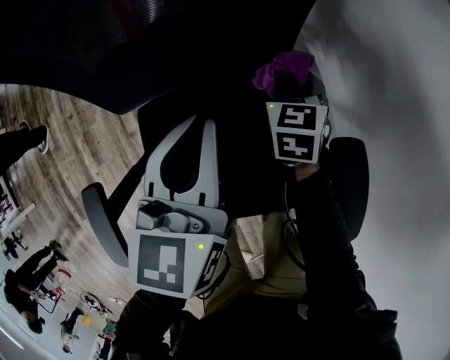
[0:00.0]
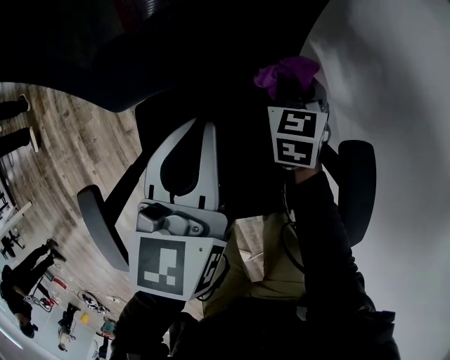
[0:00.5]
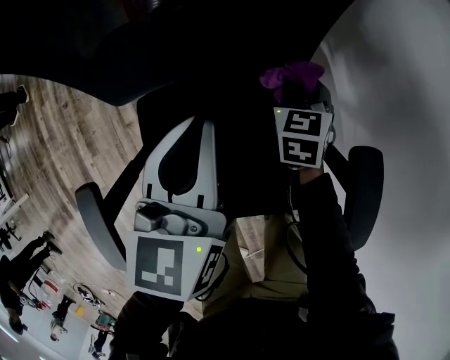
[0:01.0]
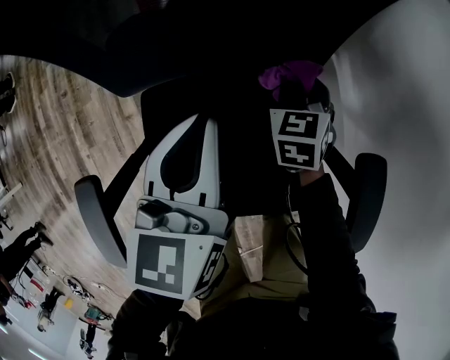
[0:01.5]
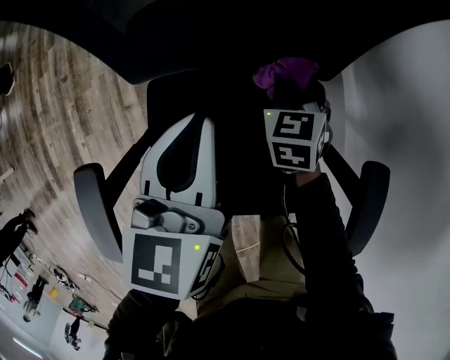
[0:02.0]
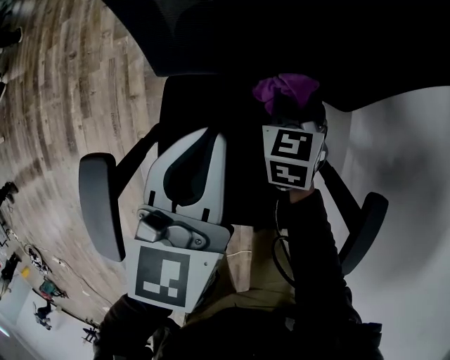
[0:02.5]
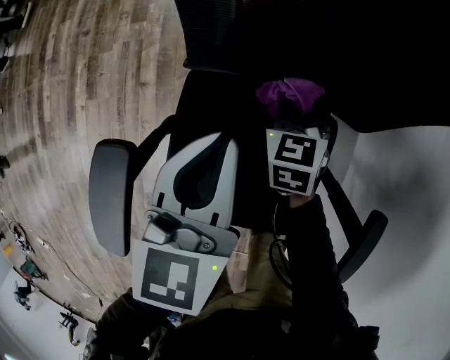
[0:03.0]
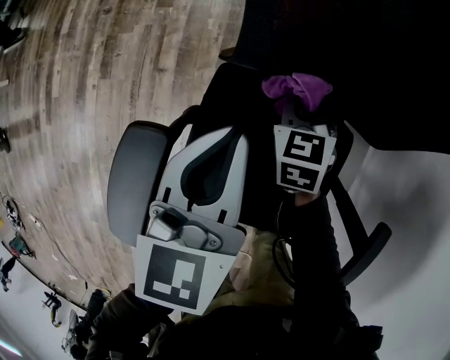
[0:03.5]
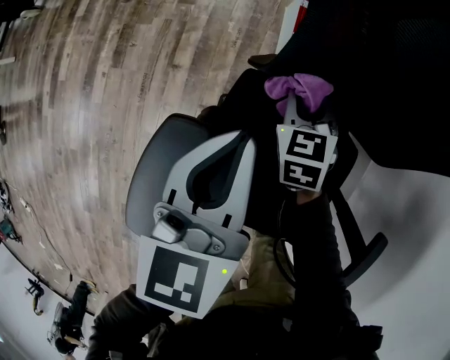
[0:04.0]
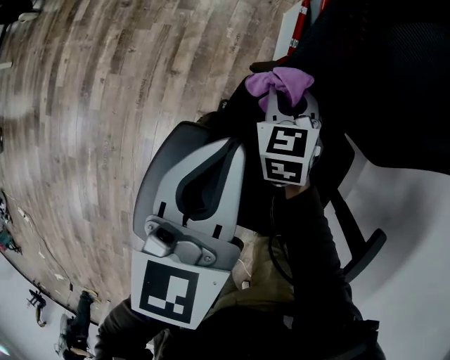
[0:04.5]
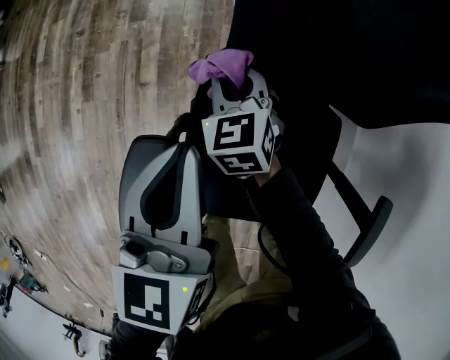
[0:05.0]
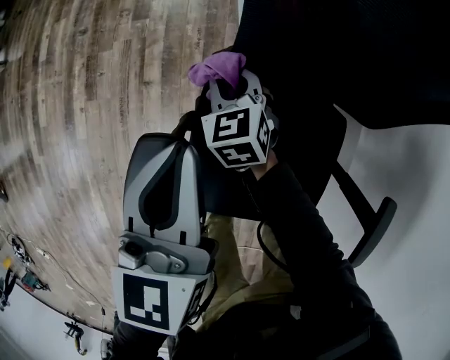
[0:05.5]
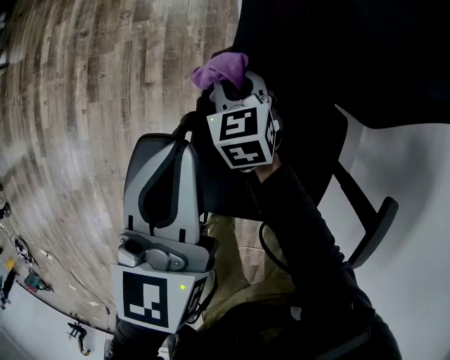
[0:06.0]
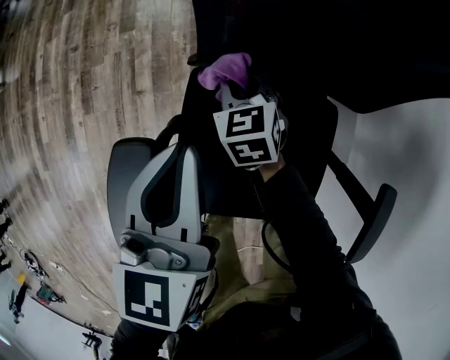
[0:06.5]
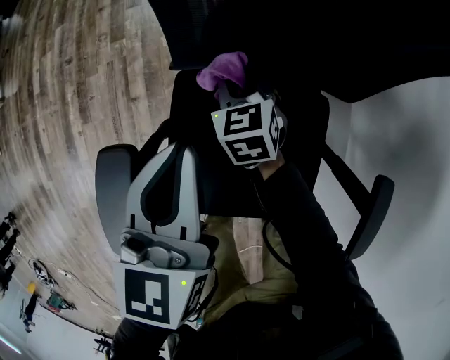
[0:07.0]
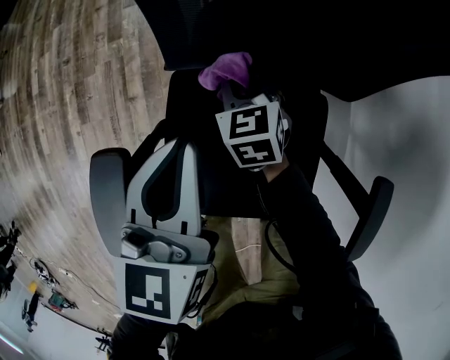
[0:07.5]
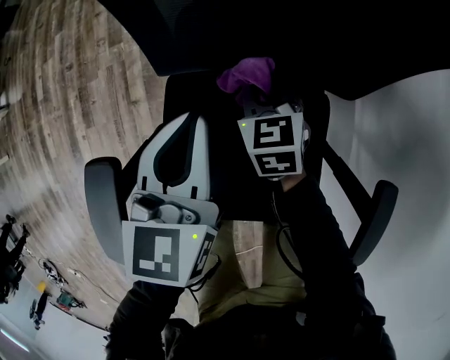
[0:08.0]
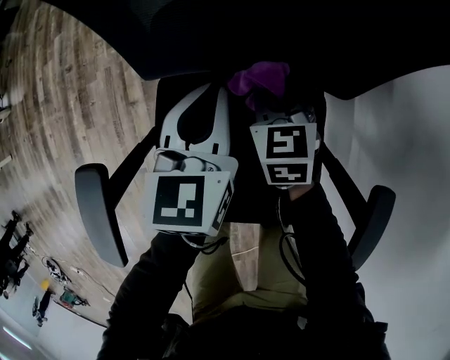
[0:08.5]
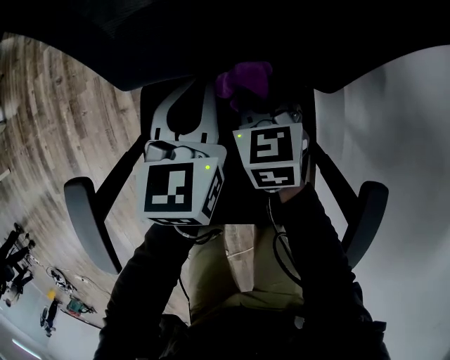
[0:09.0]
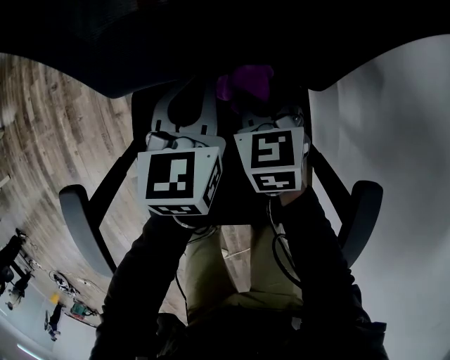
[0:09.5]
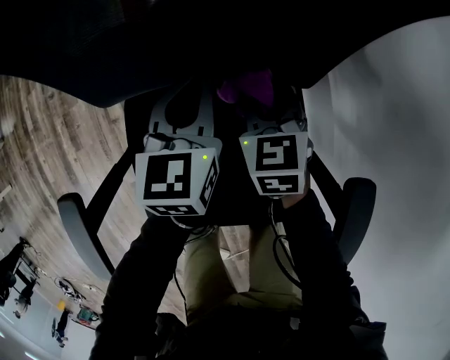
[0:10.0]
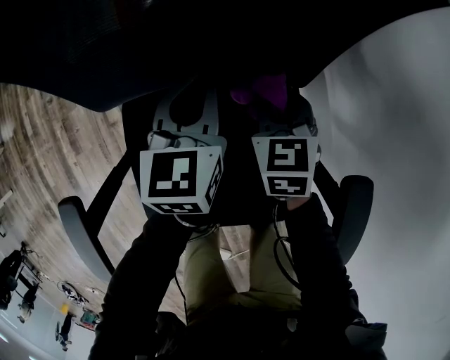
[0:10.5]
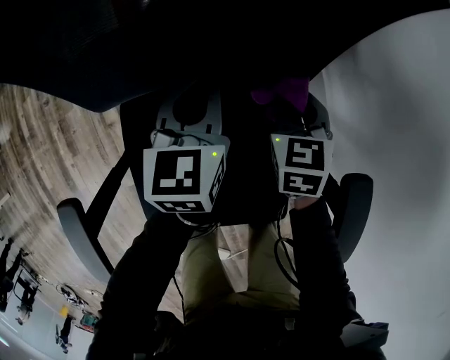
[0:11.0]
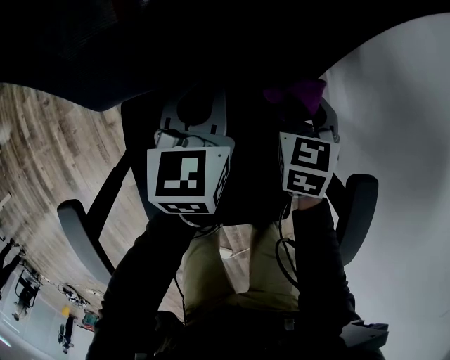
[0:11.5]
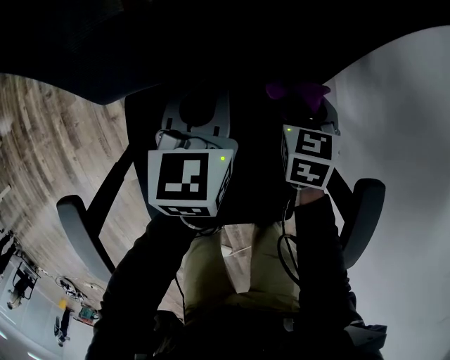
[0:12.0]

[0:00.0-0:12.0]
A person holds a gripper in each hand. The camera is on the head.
0:00.0 to 0:02.0: The two grippers go some 10 cm to the left.
0:02.0 to 0:04.0: The grippers both shift to the left by about 25 cm. The right gripper swivels approximately 20 degrees.
0:04.0 to 0:06.0: The right gripper is displaced to the left by some 5 cm.
0:06.0 to 0:08.0: Both grippers move to the right, about 15 cm.
0:08.0 to 0:10.0: The left gripper goes about 20 cm to the right and downward, while the right gripper goes some 15 cm to the right.
0:10.0 to 0:12.0: The right gripper shifts about 10 cm to the right.

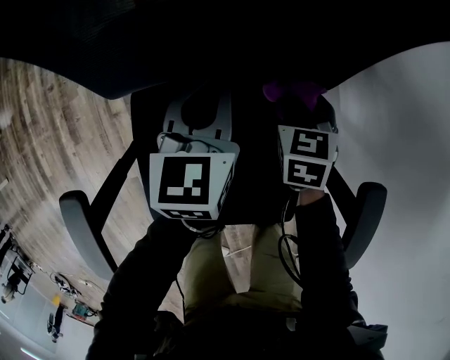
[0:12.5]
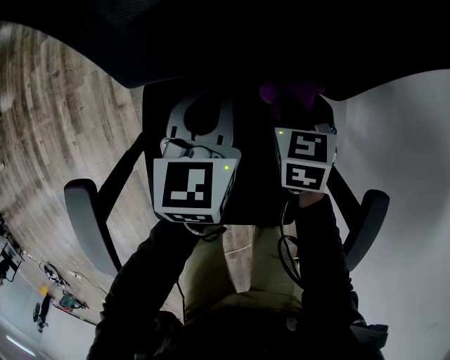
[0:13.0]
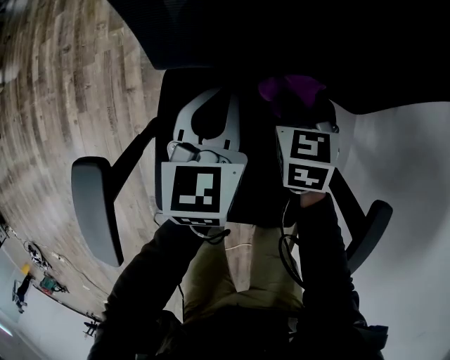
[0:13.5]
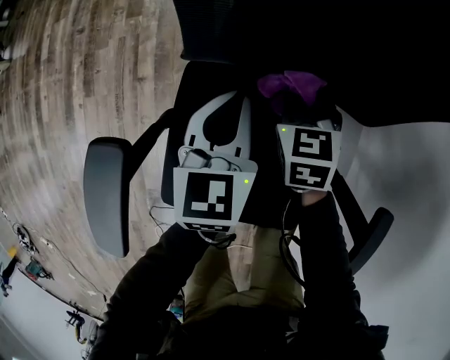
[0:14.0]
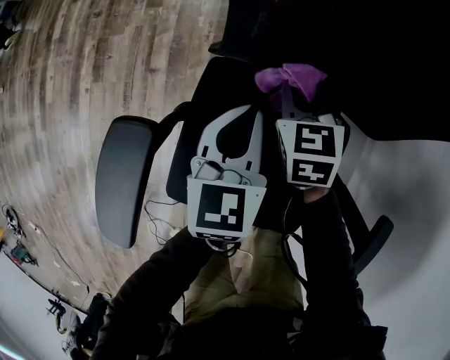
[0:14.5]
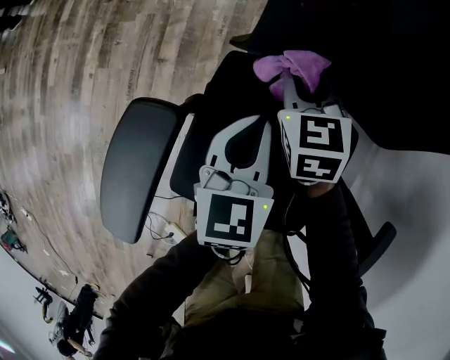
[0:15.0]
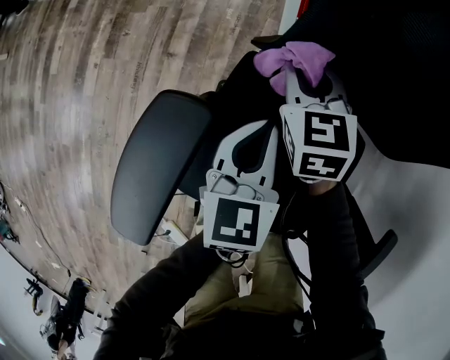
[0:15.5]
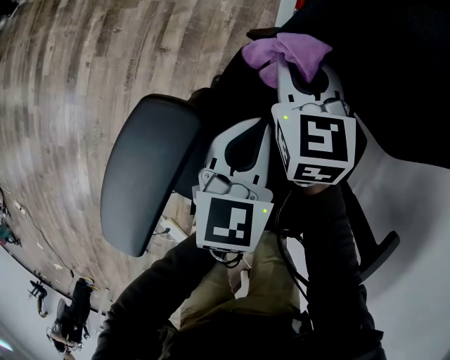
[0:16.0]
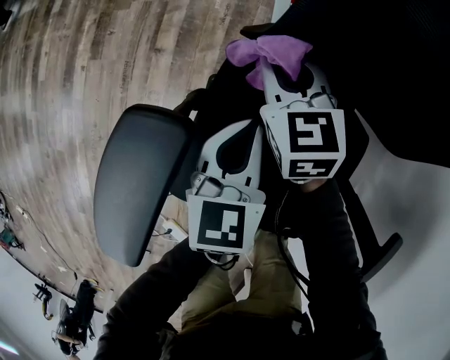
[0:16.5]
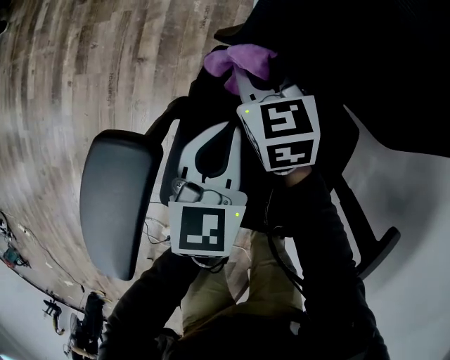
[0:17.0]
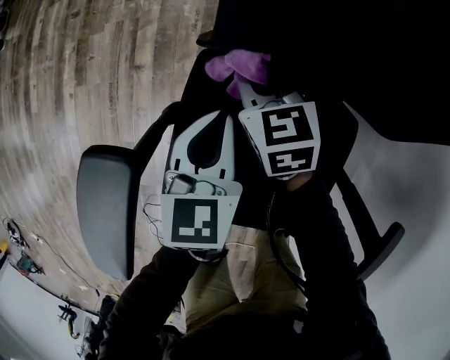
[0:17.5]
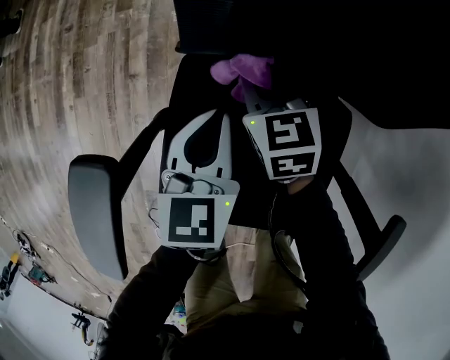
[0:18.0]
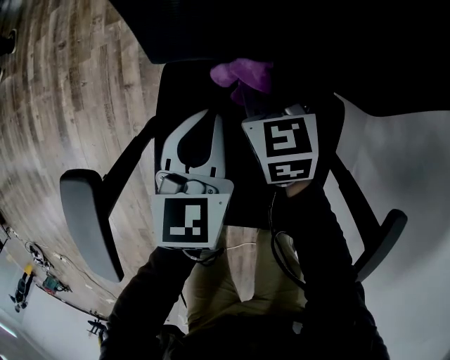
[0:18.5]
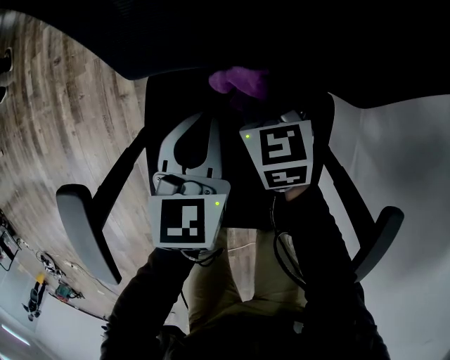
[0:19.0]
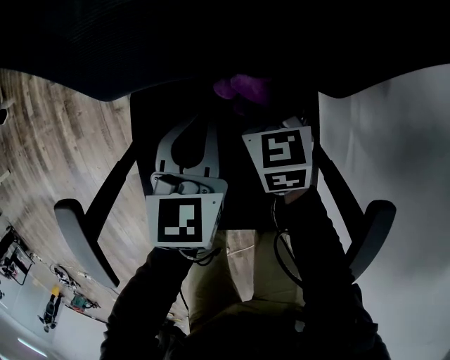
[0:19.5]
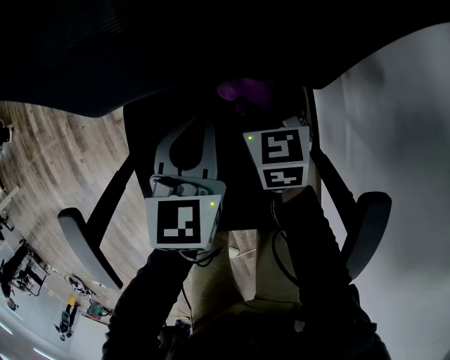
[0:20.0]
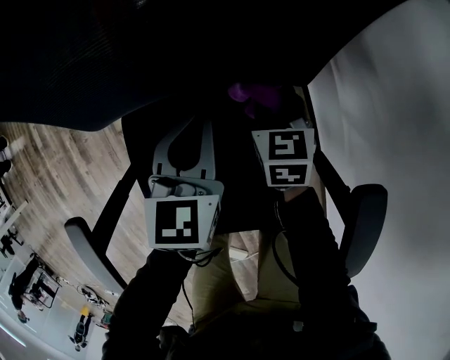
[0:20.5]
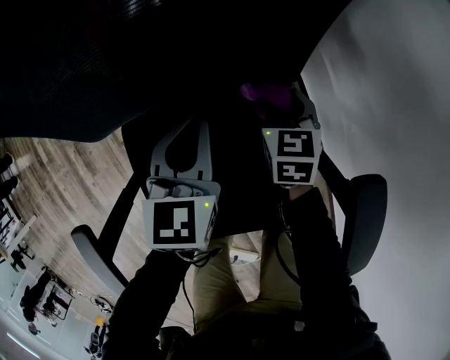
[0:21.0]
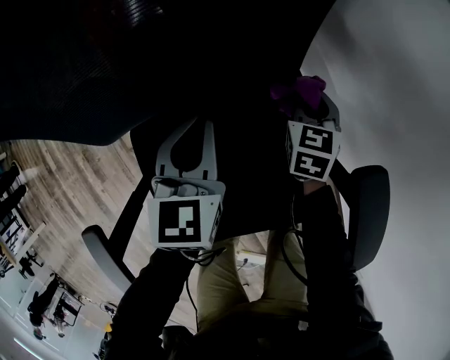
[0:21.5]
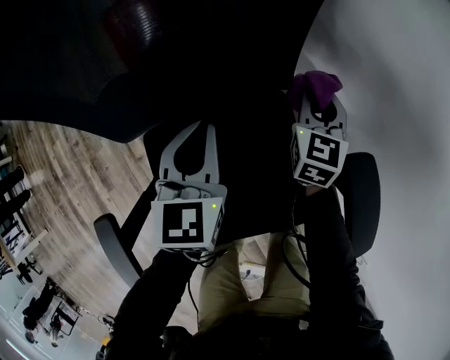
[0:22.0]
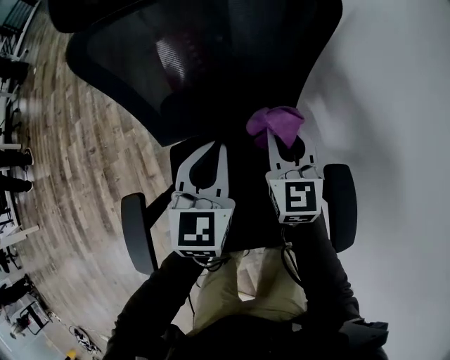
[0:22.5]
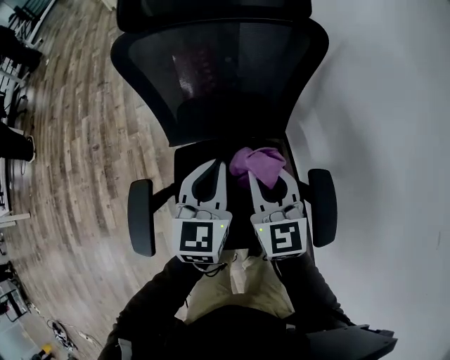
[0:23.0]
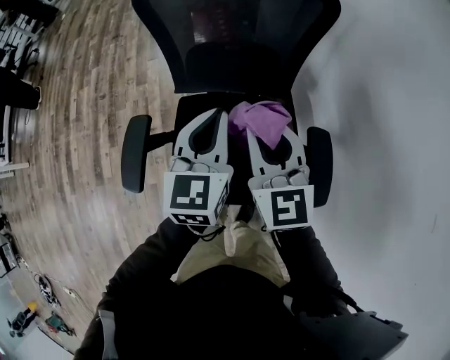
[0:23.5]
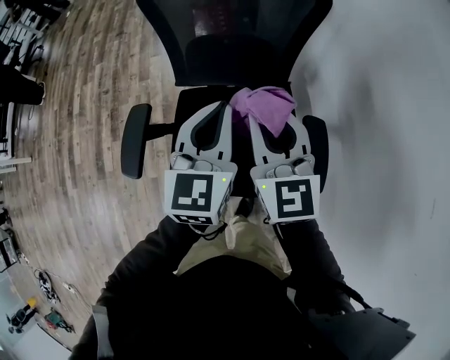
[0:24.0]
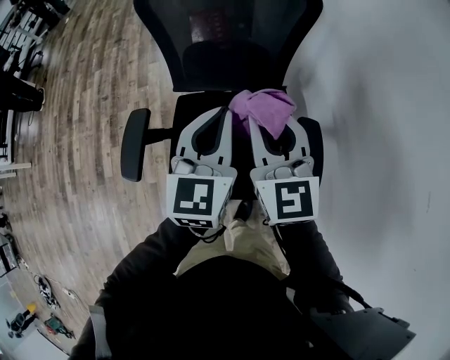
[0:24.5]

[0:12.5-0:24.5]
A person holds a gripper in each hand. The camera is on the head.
0:12.5 to 0:14.5: The right gripper is displaced to the left by some 25 cm, and swivels about 30 degrees, while the left gripper travels to the left and backward by some 20 cm.
0:14.5 to 0:16.5: The right gripper heads to the left, covering approximately 15 cm. The left gripper goes some 10 cm to the left and downward.
0:16.5 to 0:18.5: The right gripper shifts approximately 15 cm to the right; the left gripper moves to the right, approximately 10 cm.
0:18.5 to 0:20.5: The grippers both shift to the right by roughly 20 cm. The right gripper changes its angle by about 20 degrees.
0:20.5 to 0:22.5: Both grippers travel together upward, roughly 25 cm. The right gripper tips its fingers upward by approximately 30 degrees.
0:22.5 to 0:24.5: The two grippers go roughly 25 cm backward and upward.

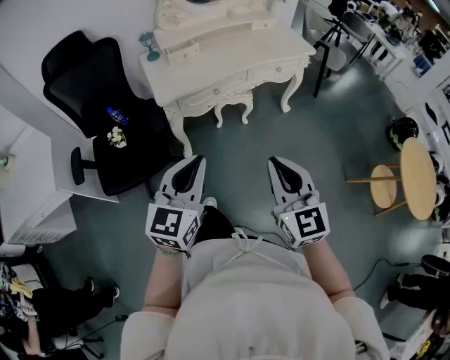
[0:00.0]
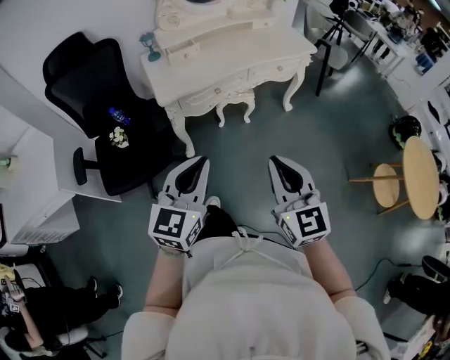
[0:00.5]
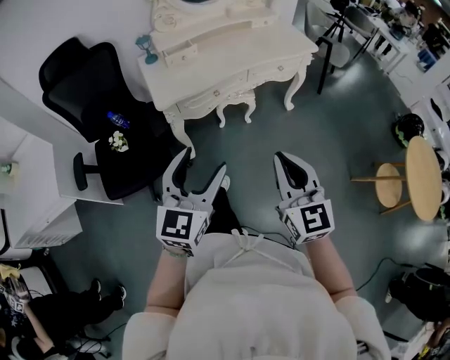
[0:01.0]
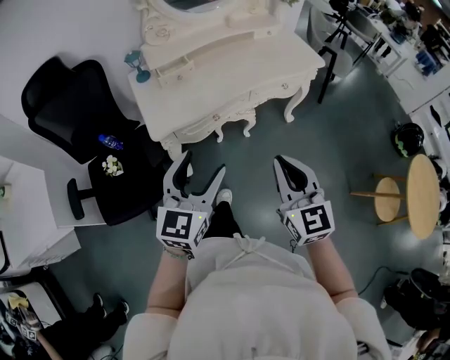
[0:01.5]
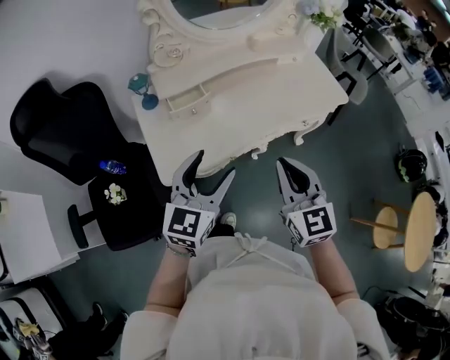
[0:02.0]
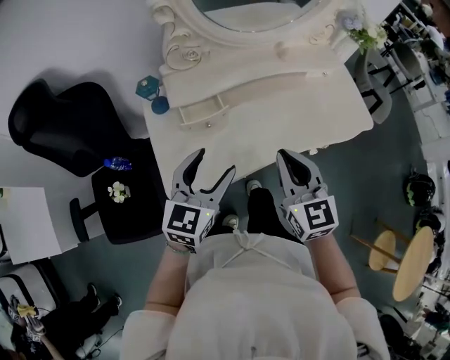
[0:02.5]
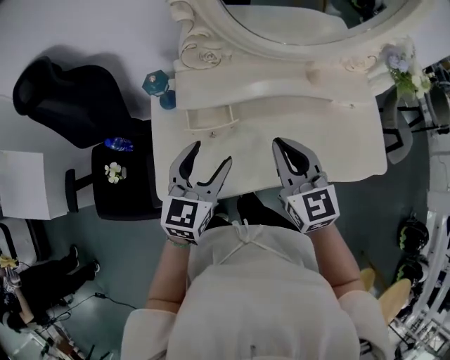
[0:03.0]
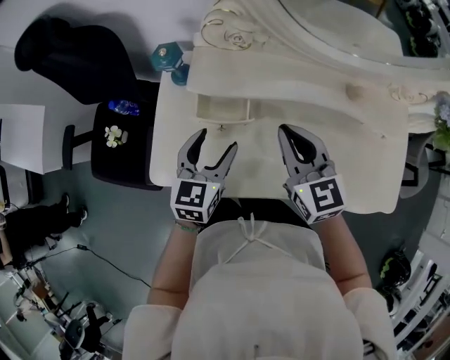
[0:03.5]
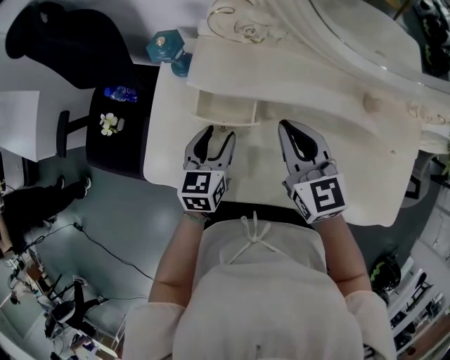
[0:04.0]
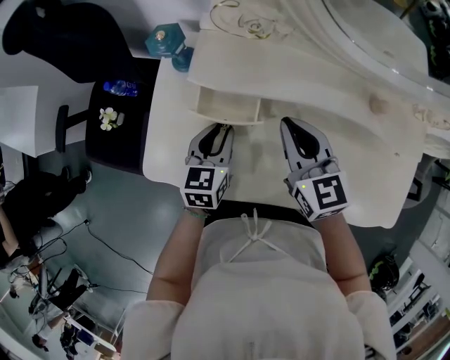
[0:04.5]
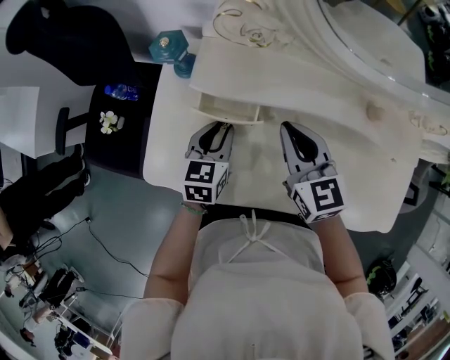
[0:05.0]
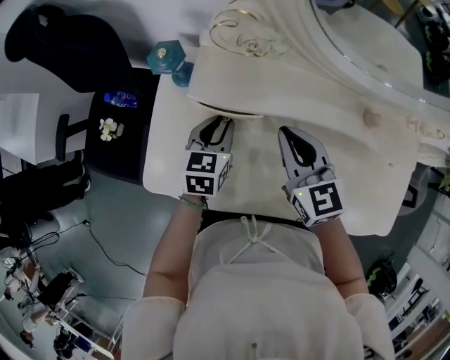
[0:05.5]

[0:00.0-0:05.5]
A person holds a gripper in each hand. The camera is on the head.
0:00.0 to 0:02.0: Both grippers move forward, approximately 40 cm. The left gripper opens its fingers.
0:02.0 to 0:03.5: The left gripper shifts by some 30 cm, and swivels some 40 degrees; the right gripper changes place by roughly 35 cm, and changes its angle by approximately 40 degrees.
0:03.5 to 0:05.5: The left gripper is displaced downward and forward by about 10 cm, and closes up. Meanwhile the right gripper travels forward by approximately 5 cm.
